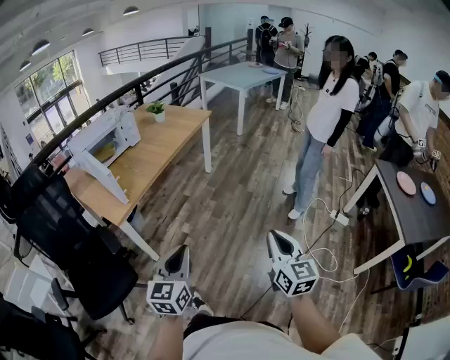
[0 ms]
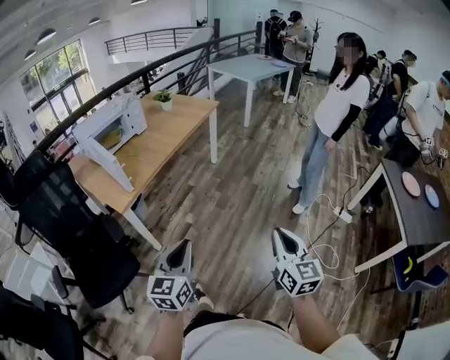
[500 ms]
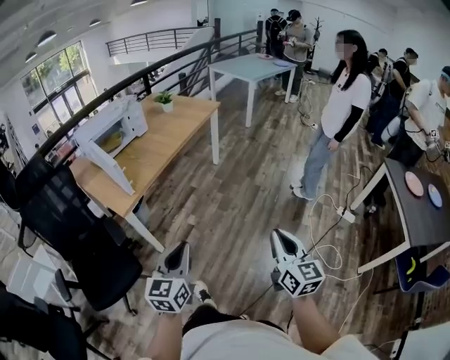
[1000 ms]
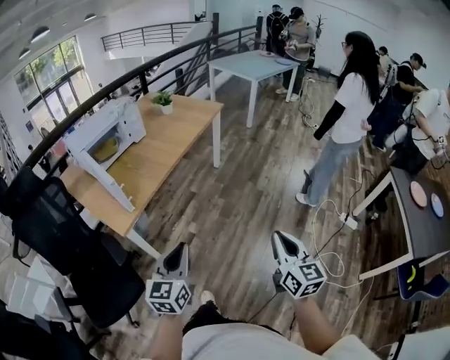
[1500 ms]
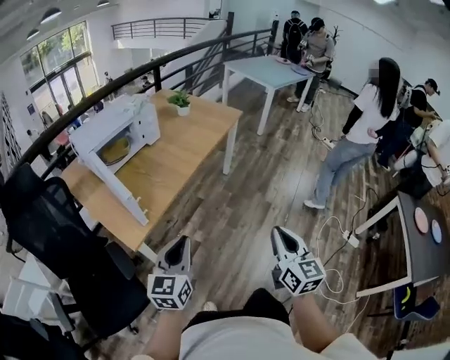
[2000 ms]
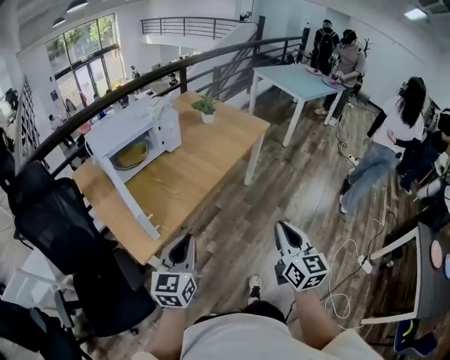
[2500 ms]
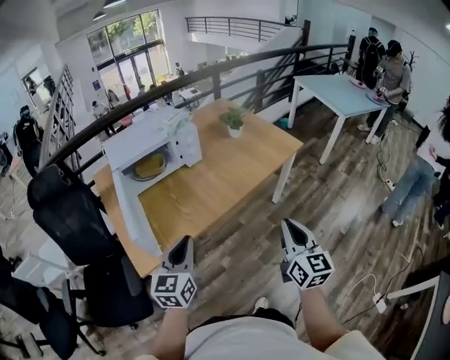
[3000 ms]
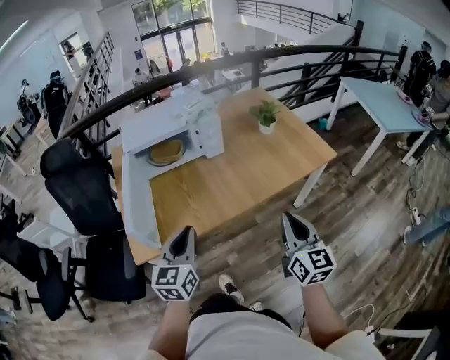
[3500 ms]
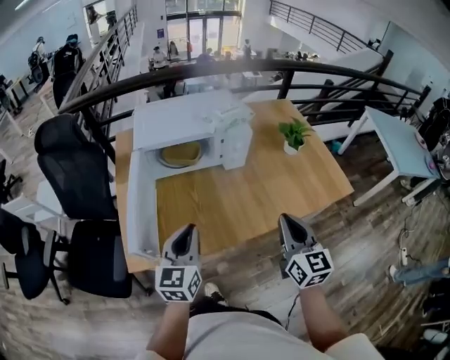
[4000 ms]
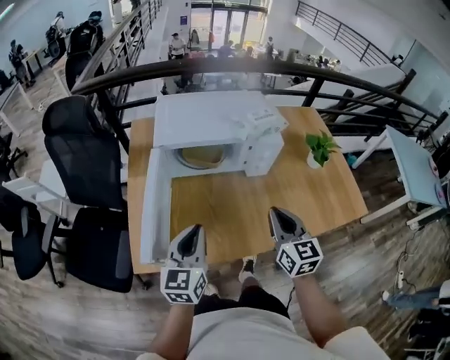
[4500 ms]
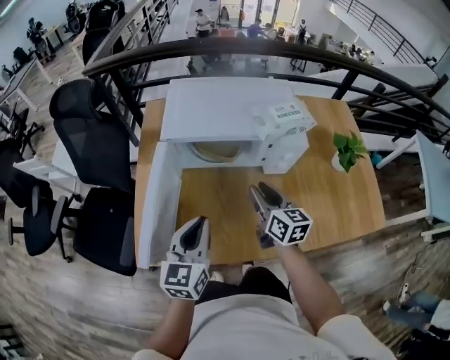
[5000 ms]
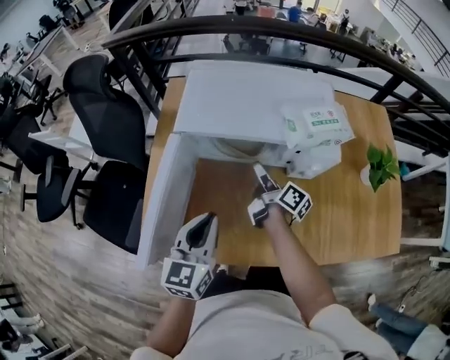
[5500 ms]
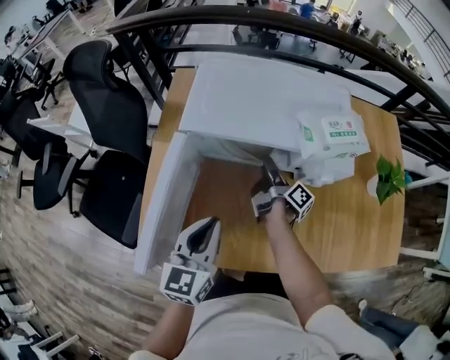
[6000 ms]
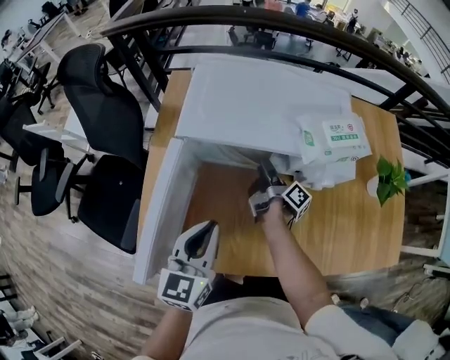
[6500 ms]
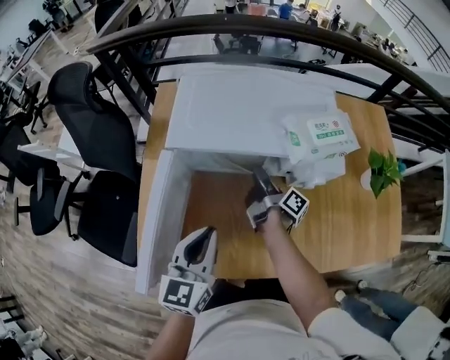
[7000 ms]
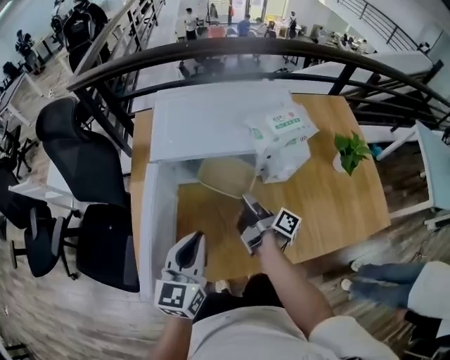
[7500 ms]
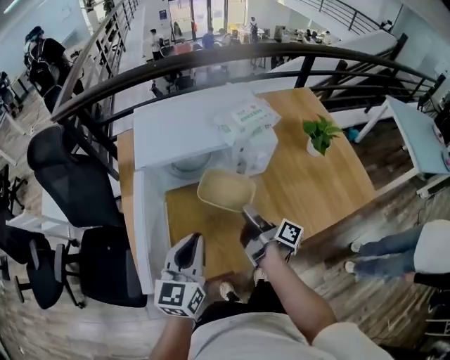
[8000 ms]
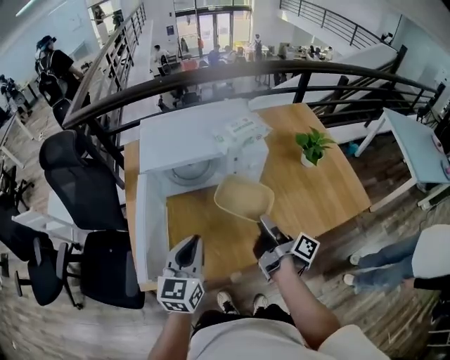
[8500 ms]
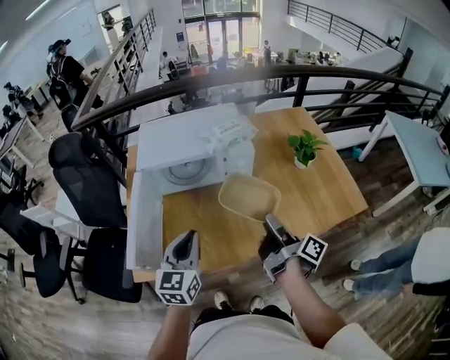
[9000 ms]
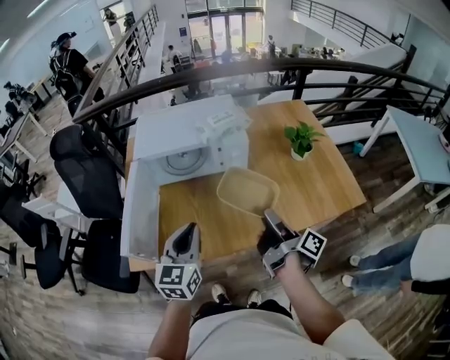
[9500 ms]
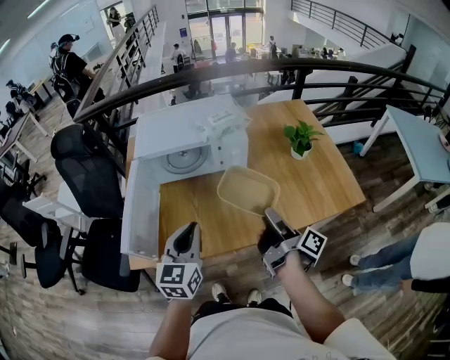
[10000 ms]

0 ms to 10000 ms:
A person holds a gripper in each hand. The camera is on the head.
0 ms to 2000 ms: The two grippers go about 30 cm forward and to the left.
2000 ms to 4000 ms: The right gripper shifts by roughly 60 cm, and rotates about 40 degrees, while the left gripper changes place by some 40 cm, and changes its angle by approximately 40 degrees.
4000 ms to 6000 ms: The left gripper moves forward, some 15 cm. Meanwhile the right gripper shifts roughly 50 cm forward and downward, rotates around the line of its fingers by roughly 80 degrees, clockwise from behind, and opens its fingers.
6000 ms to 8000 ms: The left gripper shifts approximately 5 cm backward; the right gripper travels backward and upward by approximately 20 cm.
8000 ms to 10000 ms: The left gripper travels to the right and backward by approximately 10 cm. Meanwhile the right gripper shifts roughly 25 cm to the right, backward and upward.

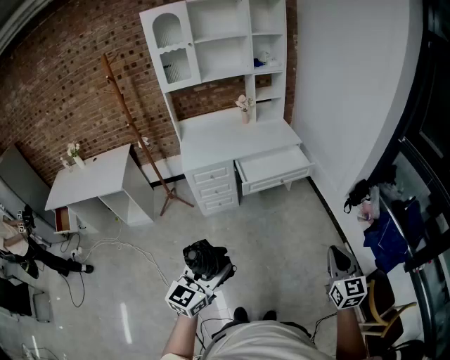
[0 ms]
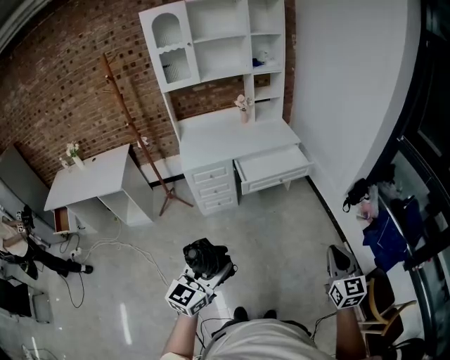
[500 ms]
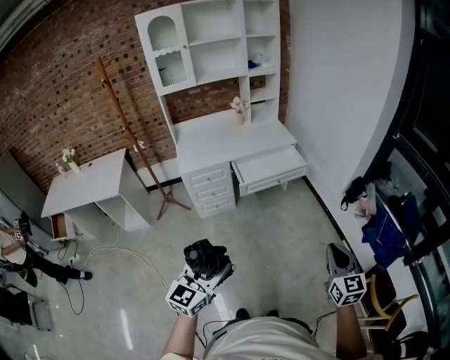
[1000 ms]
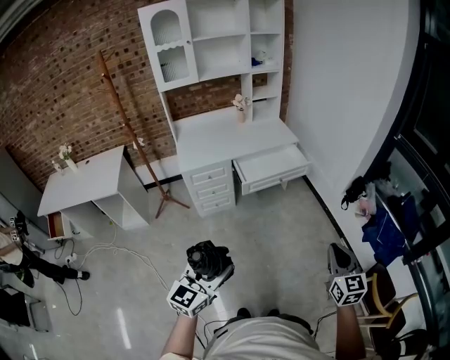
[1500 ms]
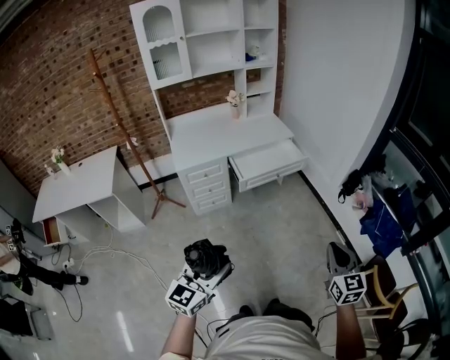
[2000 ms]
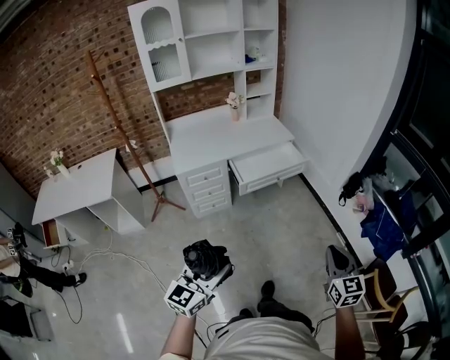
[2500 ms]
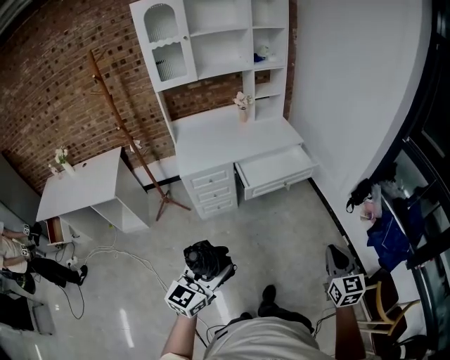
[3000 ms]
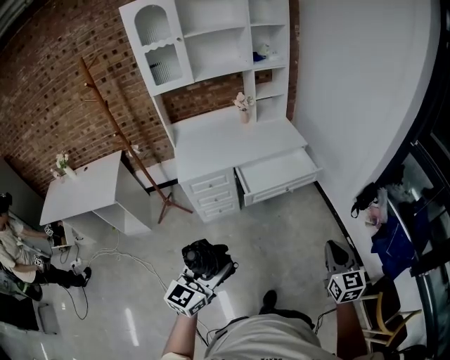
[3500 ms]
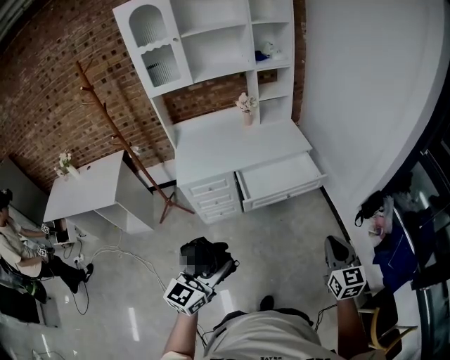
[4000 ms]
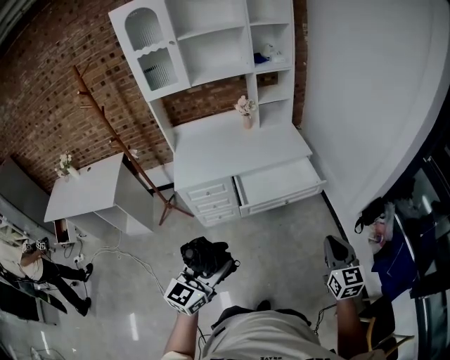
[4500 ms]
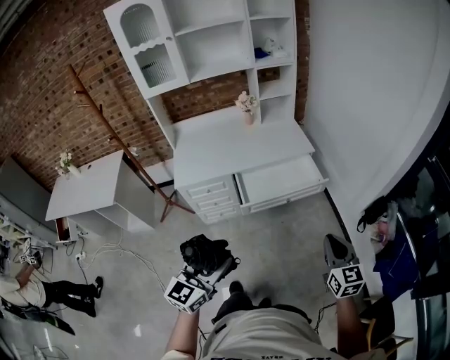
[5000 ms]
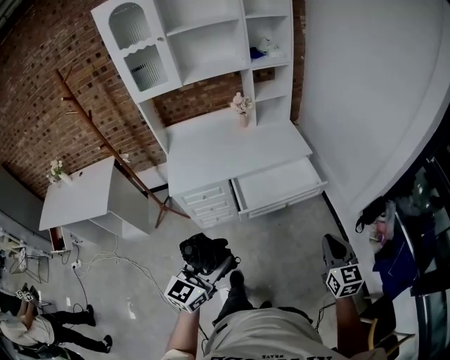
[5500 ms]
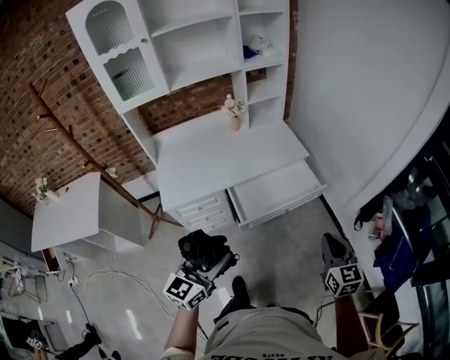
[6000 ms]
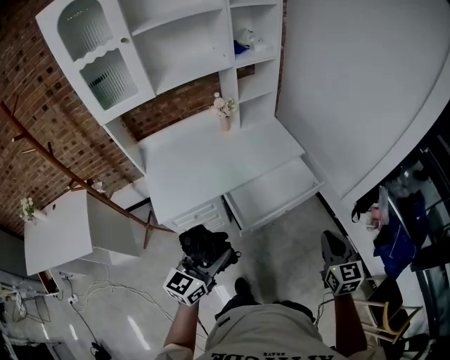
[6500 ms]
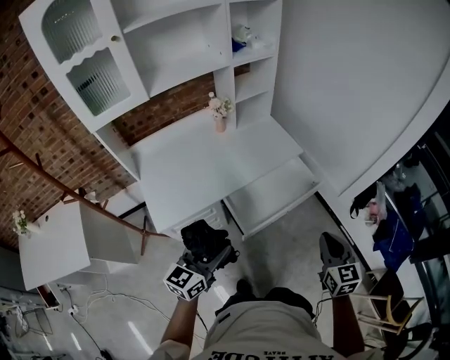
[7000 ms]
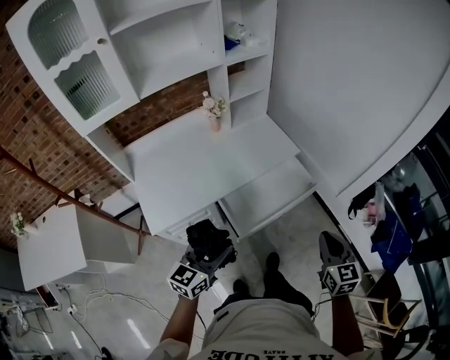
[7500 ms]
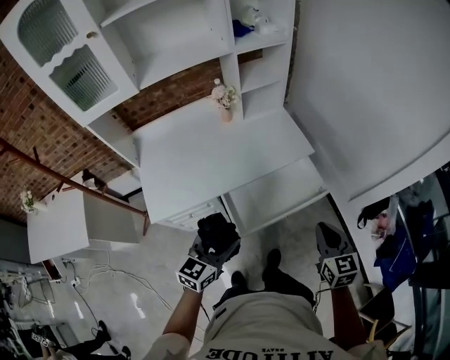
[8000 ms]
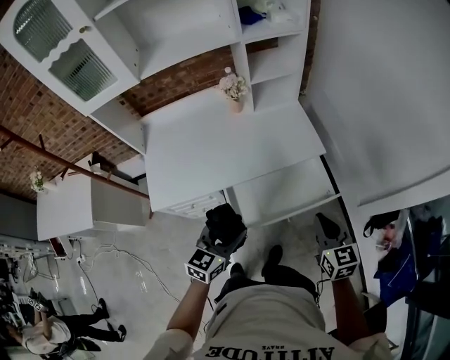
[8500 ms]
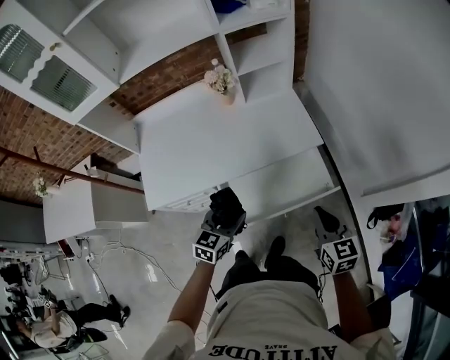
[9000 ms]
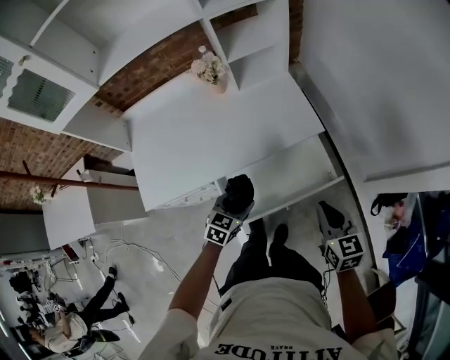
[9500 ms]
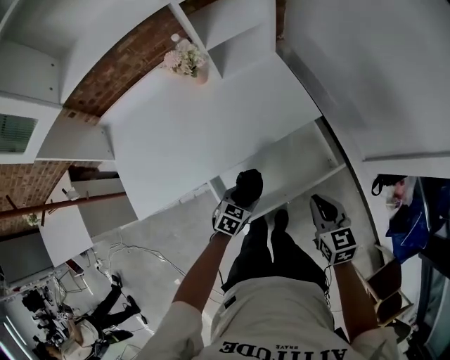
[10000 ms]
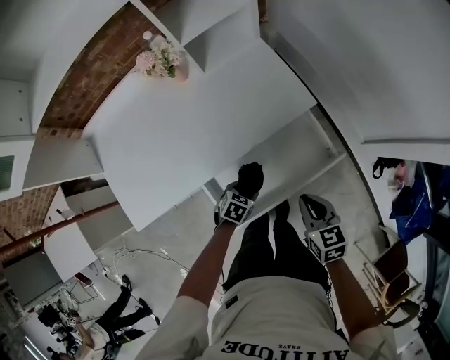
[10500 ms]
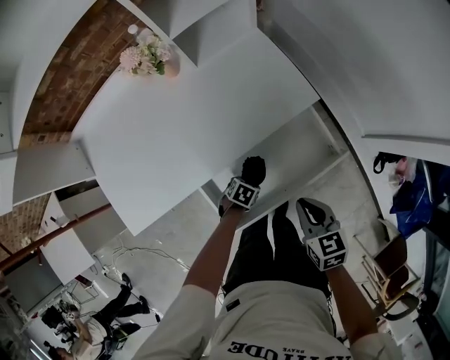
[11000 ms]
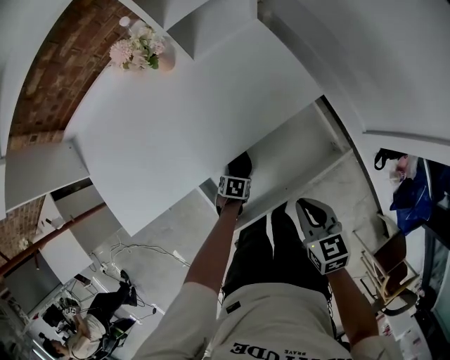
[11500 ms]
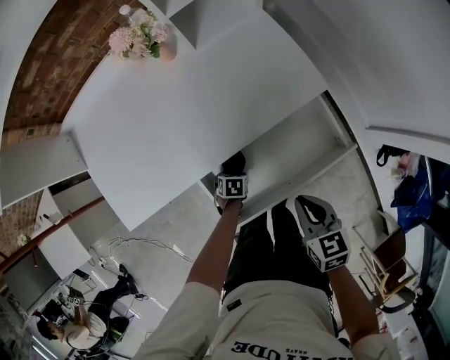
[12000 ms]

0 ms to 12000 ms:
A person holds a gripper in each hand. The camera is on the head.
0 ms to 2000 ms: Both grippers move to the left, about 5 cm.
2000 ms to 4000 ms: Both grippers move forward, some 25 cm.
4000 ms to 6000 ms: Both grippers travel together forward, roughly 20 cm.
6000 ms to 8000 ms: The left gripper travels forward and downward by roughly 25 cm. The right gripper is displaced forward by about 20 cm.
8000 ms to 10000 ms: The right gripper is displaced downward and forward by approximately 20 cm. Meanwhile the left gripper is displaced downward and forward by about 35 cm, and points its fingers roughly 30 degrees further downward.
10000 ms to 12000 ms: The right gripper goes roughly 10 cm downward, while the left gripper travels downward by some 20 cm, and turns by some 40 degrees.

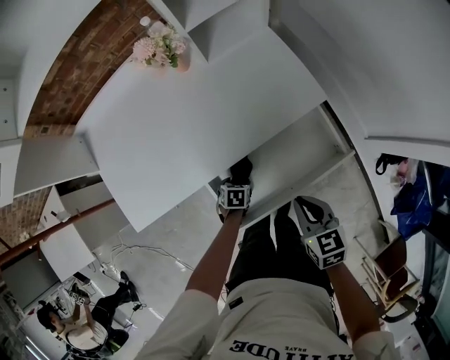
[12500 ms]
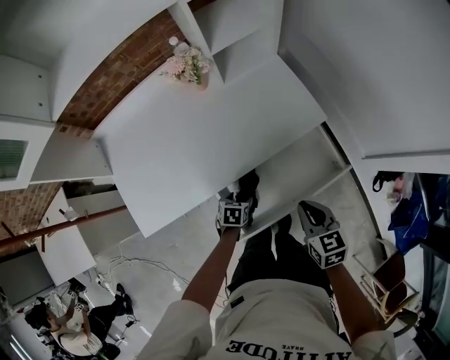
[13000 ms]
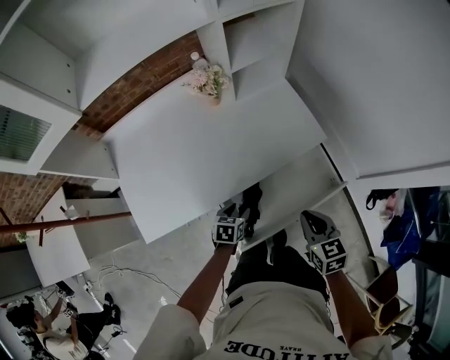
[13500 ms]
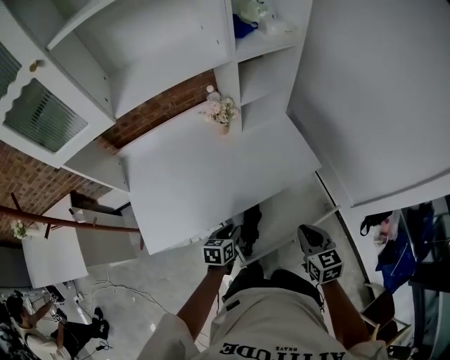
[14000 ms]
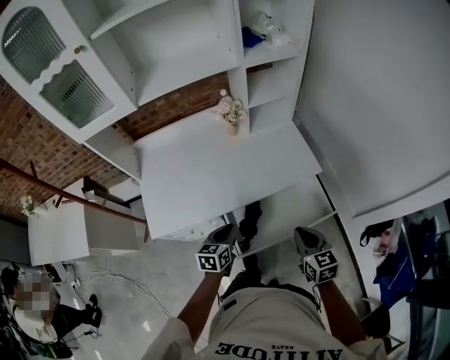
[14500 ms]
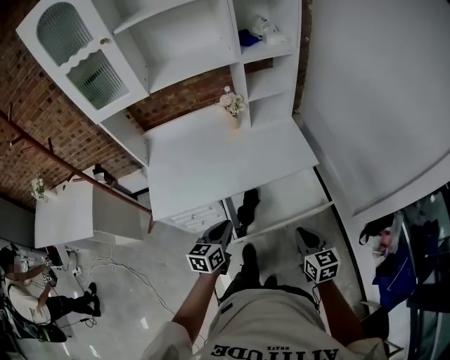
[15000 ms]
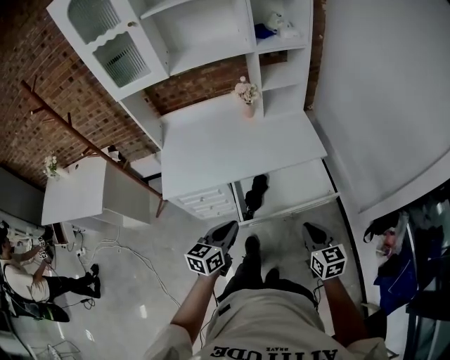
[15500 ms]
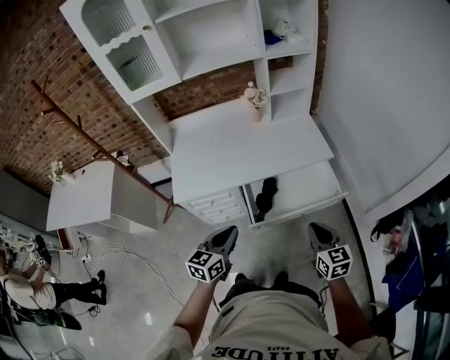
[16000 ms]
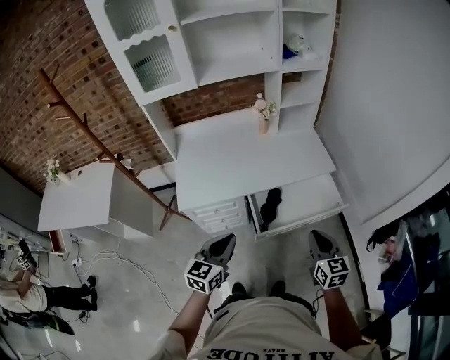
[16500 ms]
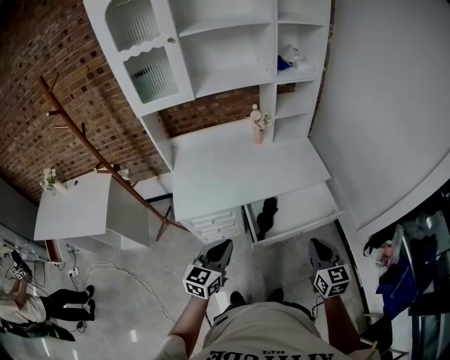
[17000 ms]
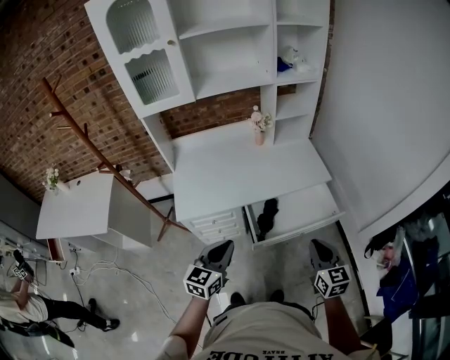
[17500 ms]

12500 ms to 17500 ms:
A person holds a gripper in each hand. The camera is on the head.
12500 ms to 15000 ms: The right gripper heads upward and backward, covering approximately 20 cm, while the left gripper goes roughly 40 cm upward, points its fingers about 50 degrees further upward, and closes.
15000 ms to 17500 ms: The grippers both shift backward, upward and to the left by some 15 cm.
